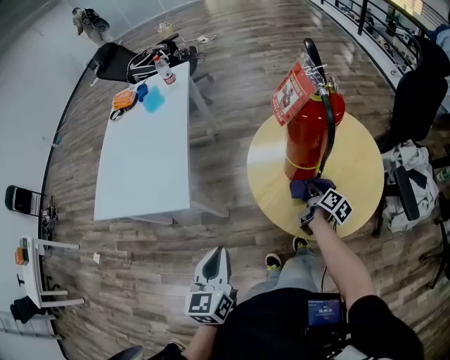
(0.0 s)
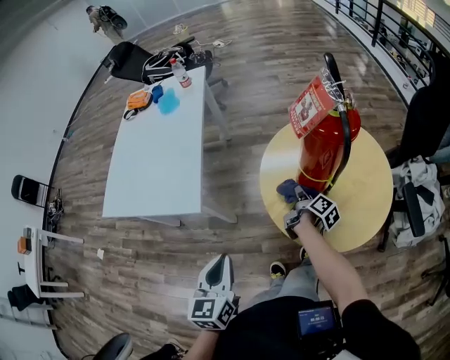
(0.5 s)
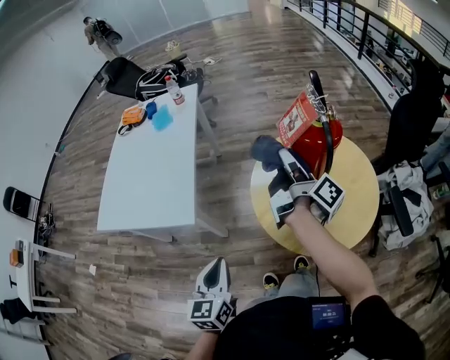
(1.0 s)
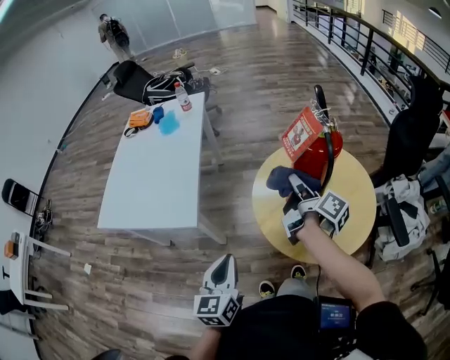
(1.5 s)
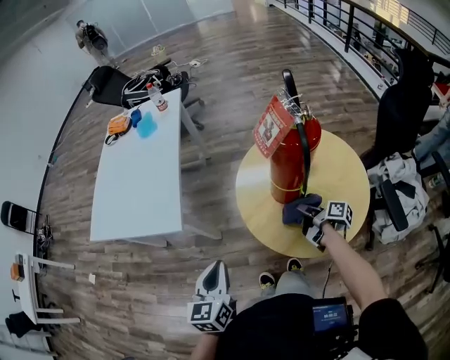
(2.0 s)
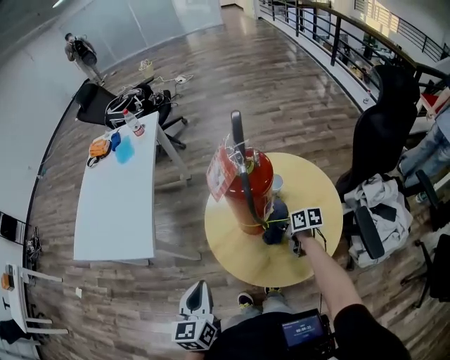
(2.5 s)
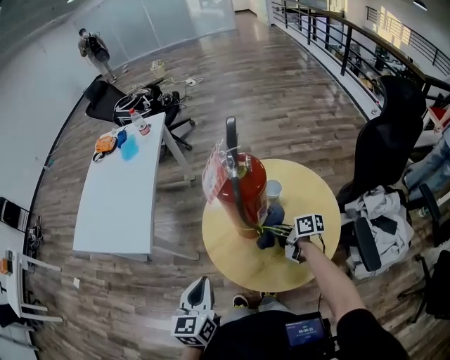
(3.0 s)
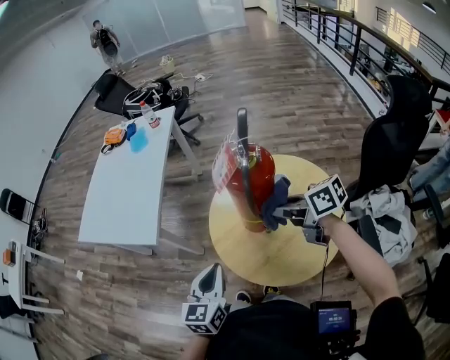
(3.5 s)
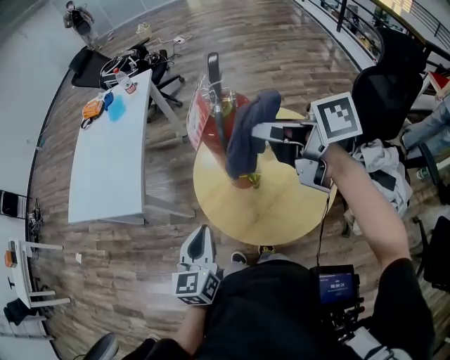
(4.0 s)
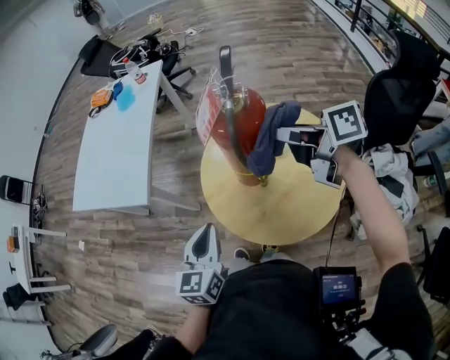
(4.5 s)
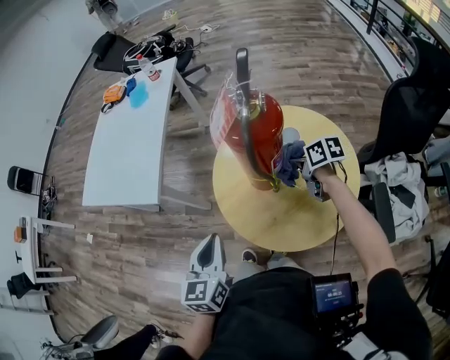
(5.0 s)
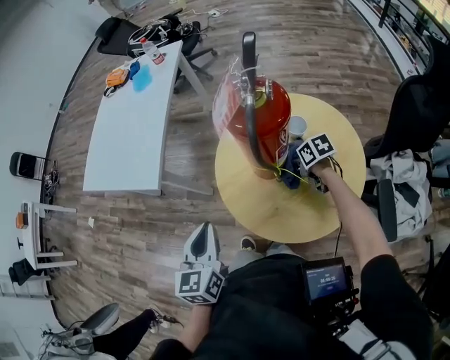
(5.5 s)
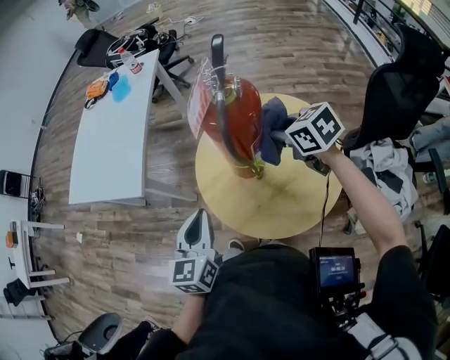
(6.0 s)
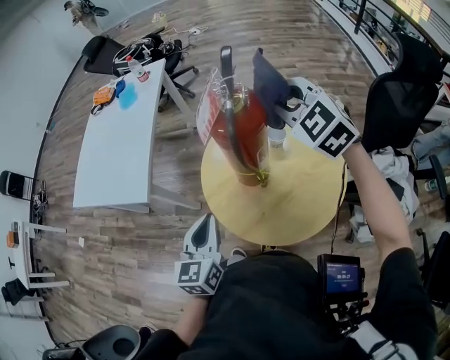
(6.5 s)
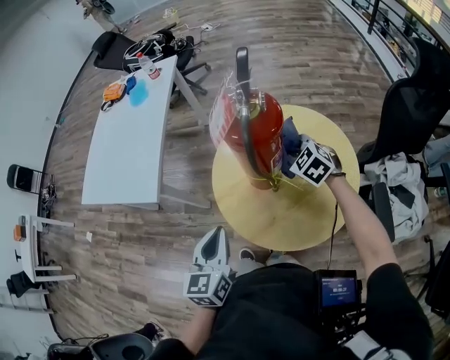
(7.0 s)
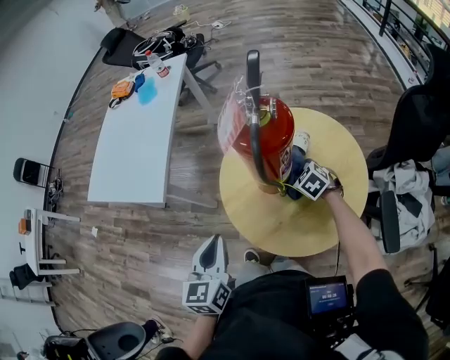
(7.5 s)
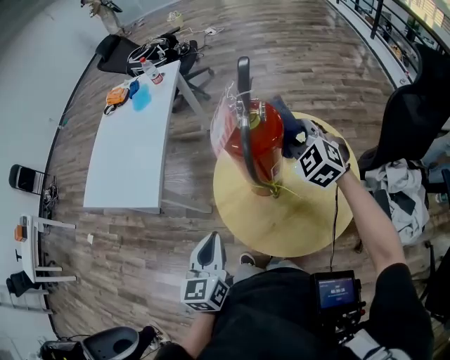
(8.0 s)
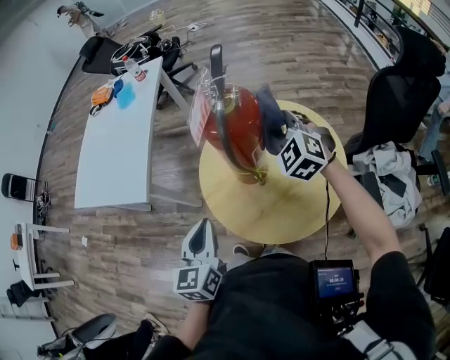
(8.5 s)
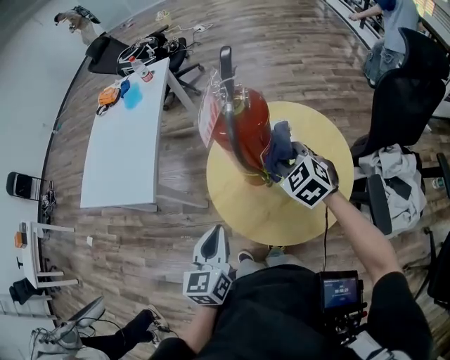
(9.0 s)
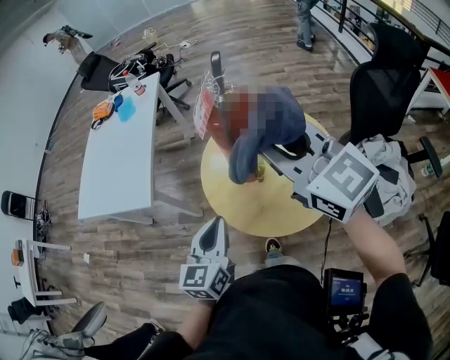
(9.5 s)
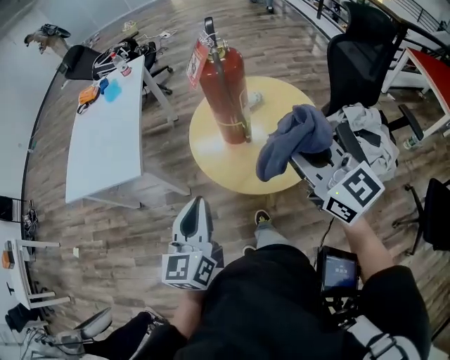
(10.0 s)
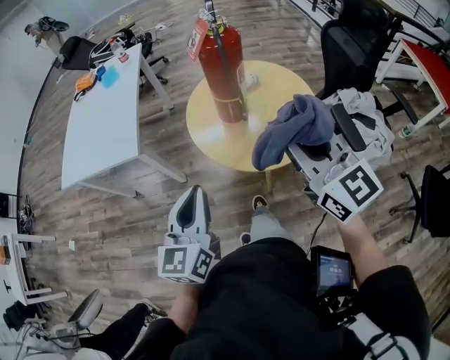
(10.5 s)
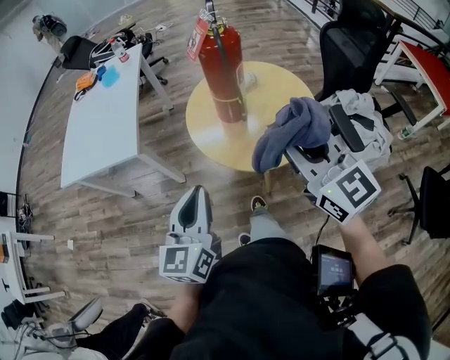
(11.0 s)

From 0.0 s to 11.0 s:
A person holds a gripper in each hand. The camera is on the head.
From 0.0 s to 2.0 s: The right gripper reaches roughly 30 cm upward, then returns, and changes its angle by roughly 30 degrees.
From 2.0 s to 3.5 s: The right gripper goes about 20 cm upward, and turns by about 60 degrees; the left gripper shifts some 15 cm to the right.
From 3.5 s to 5.5 s: The right gripper travels downward by roughly 25 cm, and tips its fingers downward by about 30 degrees.
From 5.5 s to 7.5 s: The right gripper moves about 35 cm upward and comes back, and twists some 40 degrees counterclockwise, seen from behind.
From 7.5 s to 9.0 s: The right gripper travels upward by about 20 cm, and changes its angle by approximately 20 degrees.
From 9.0 s to 11.0 s: The right gripper is displaced backward and upward by approximately 35 cm, and tilts its fingers approximately 40 degrees upward. The left gripper shifts some 20 cm backward, upward and to the left.

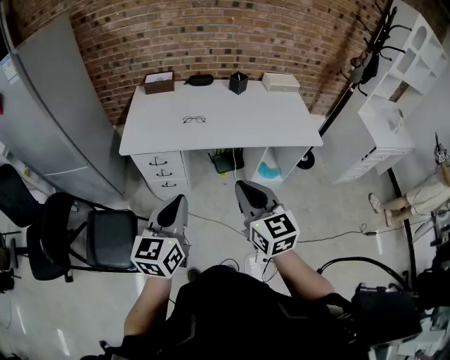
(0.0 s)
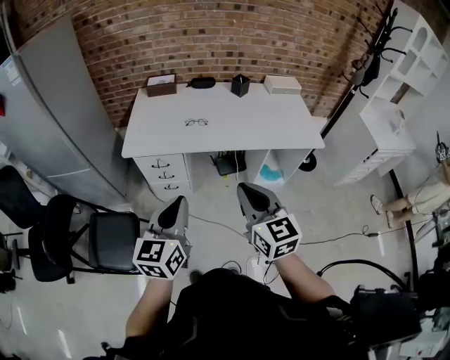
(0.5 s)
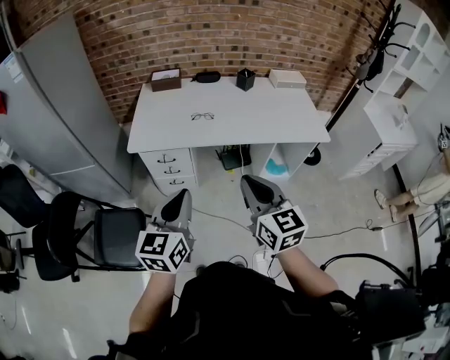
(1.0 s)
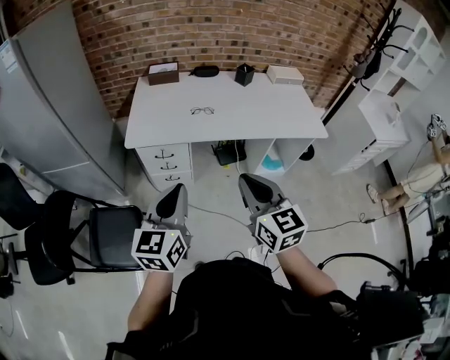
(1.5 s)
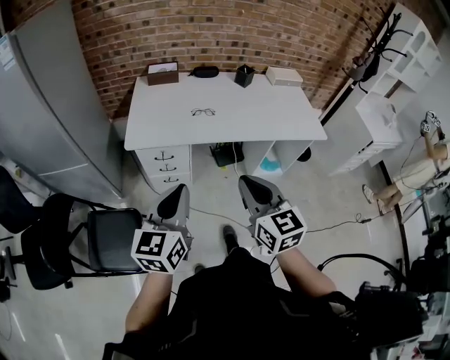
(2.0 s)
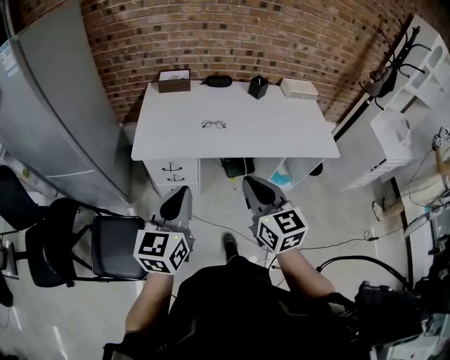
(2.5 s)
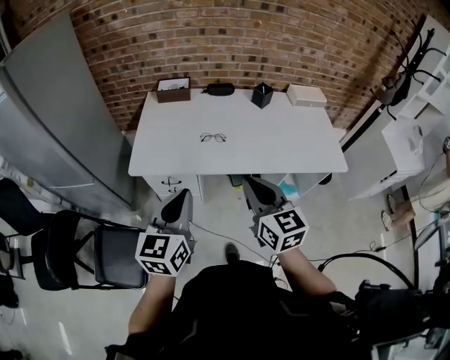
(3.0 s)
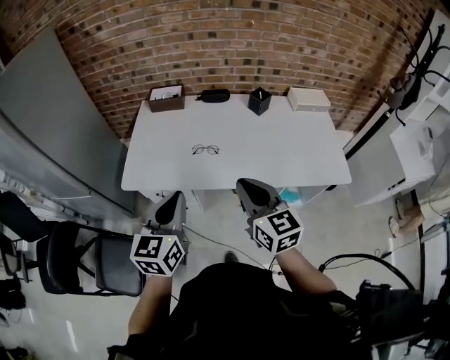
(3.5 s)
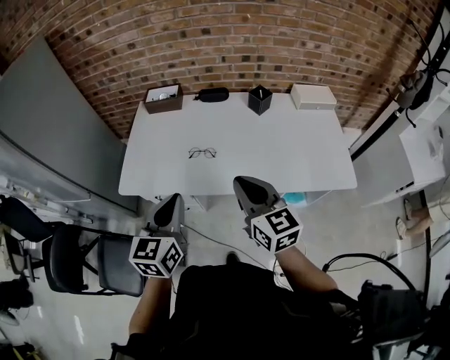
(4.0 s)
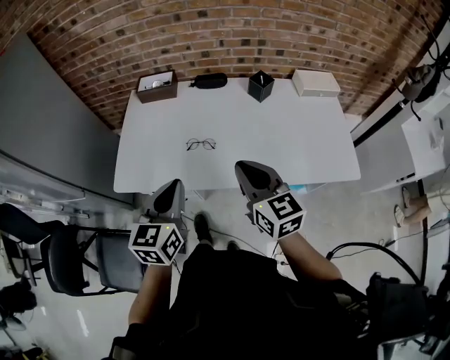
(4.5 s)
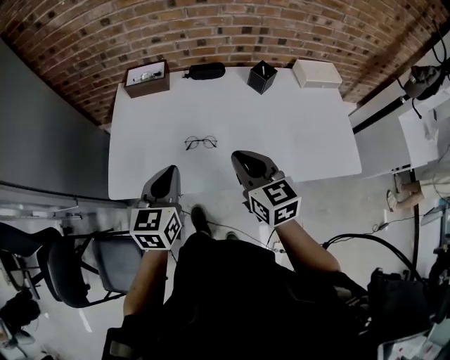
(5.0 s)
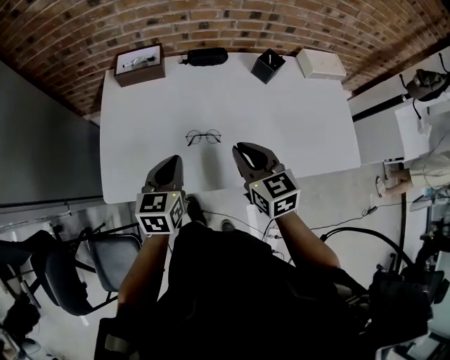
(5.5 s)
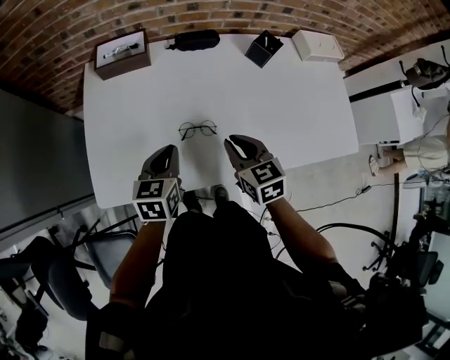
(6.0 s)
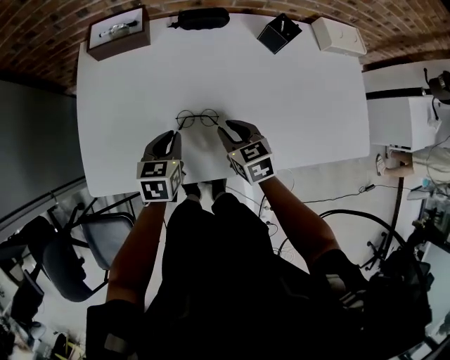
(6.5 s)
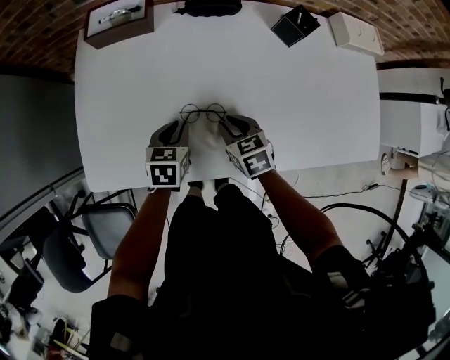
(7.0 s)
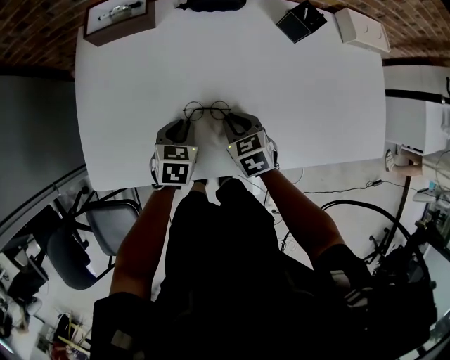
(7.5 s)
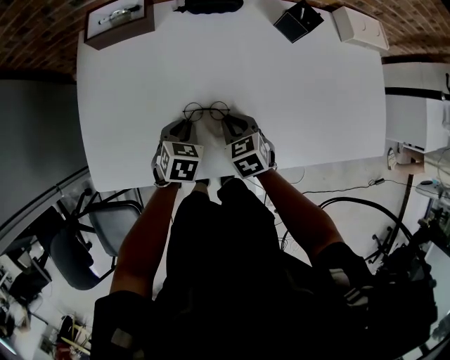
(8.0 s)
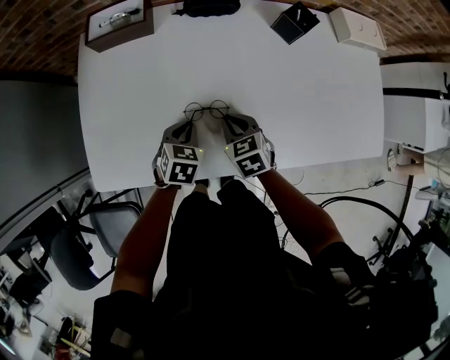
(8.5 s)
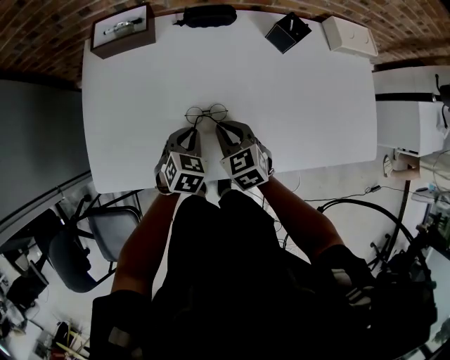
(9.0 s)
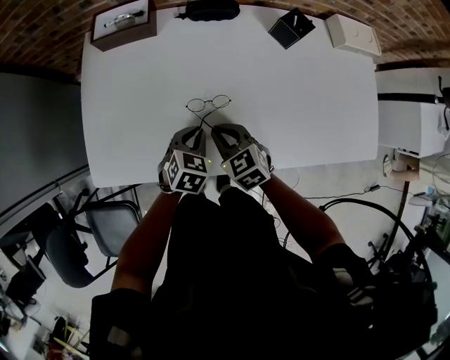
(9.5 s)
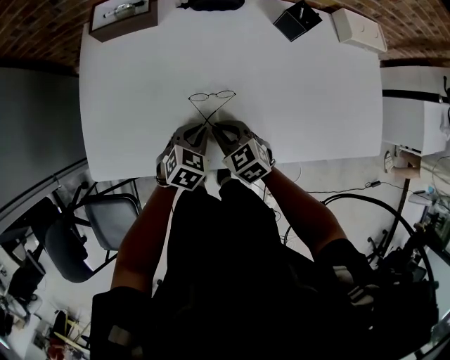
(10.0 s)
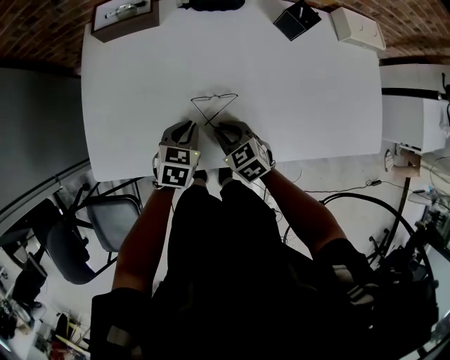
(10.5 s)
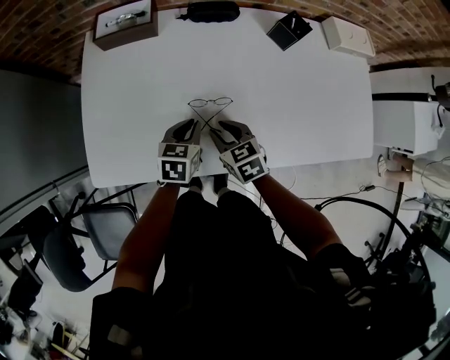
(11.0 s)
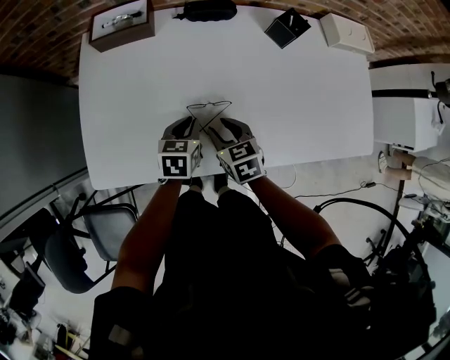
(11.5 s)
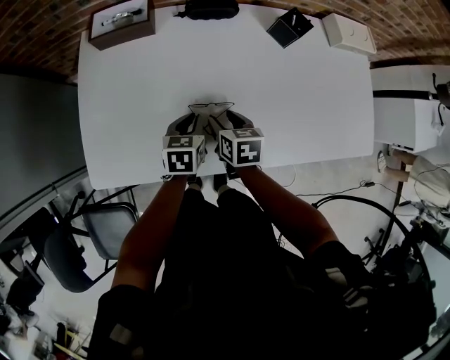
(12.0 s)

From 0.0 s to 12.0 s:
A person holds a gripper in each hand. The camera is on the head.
From 0.0 s to 2.0 s: Both grippers travel together to the left, about 10 cm.
From 2.0 s to 4.0 s: The grippers both shift forward and to the right by roughly 30 cm.
From 4.0 s to 6.0 s: Both grippers travel together forward and downward, about 30 cm. The left gripper changes its angle by about 20 degrees, while the right gripper swivels some 30 degrees.
From 6.0 s to 8.0 s: The grippers both shift downward by about 15 cm. The left gripper swivels about 30 degrees.
From 8.0 s to 10.0 s: The right gripper shifts by roughly 5 cm. Meanwhile the left gripper moves approximately 5 cm.
From 10.0 s to 12.0 s: The left gripper heads forward, covering approximately 5 cm, and changes its angle by about 30 degrees, while the right gripper moves approximately 5 cm, rolls clockwise, seen from behind, by about 40 degrees, and opens up.

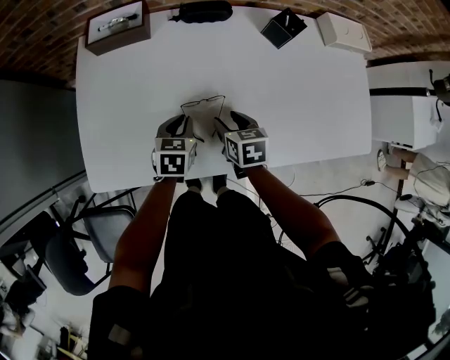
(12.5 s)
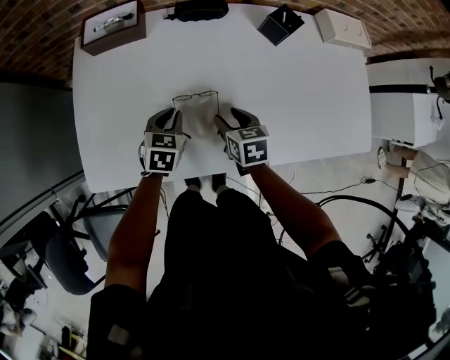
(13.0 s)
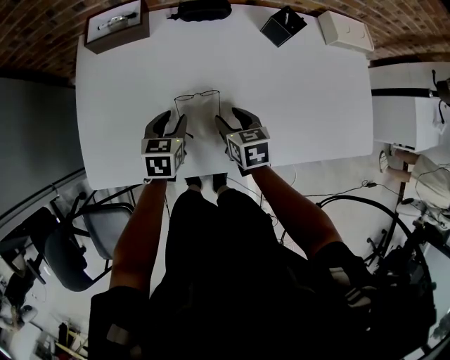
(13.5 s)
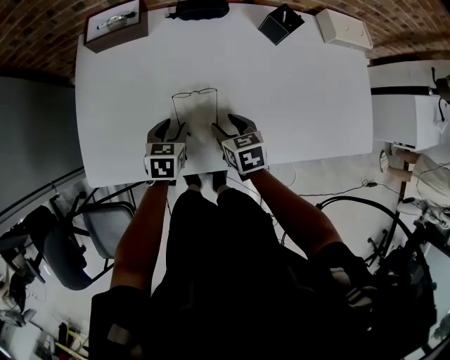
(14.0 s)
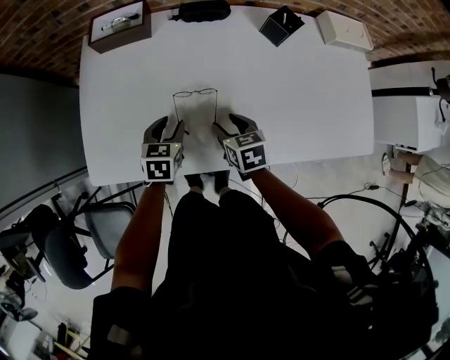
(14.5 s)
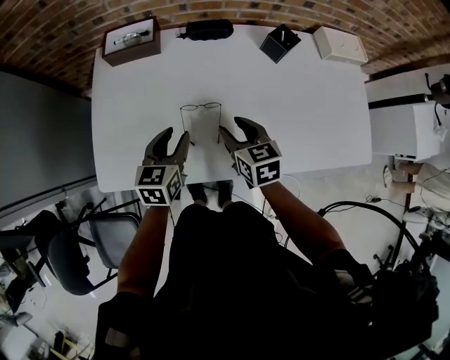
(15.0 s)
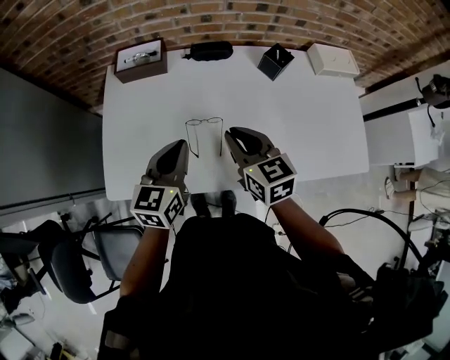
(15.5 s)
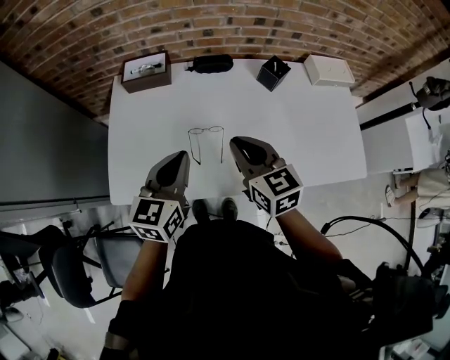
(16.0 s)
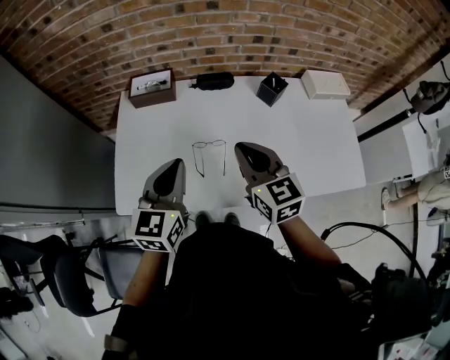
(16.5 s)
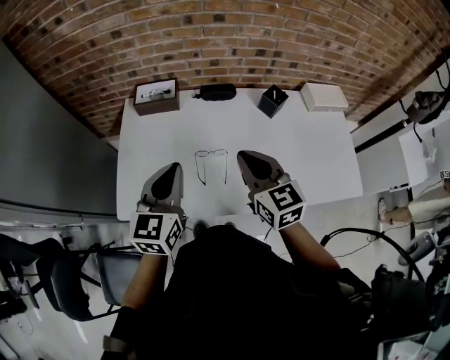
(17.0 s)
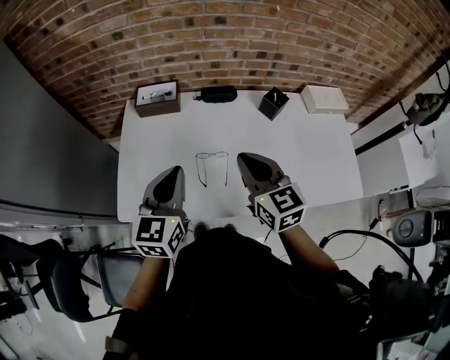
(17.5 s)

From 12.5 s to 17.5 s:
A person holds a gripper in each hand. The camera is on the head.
From 12.5 s to 15.0 s: The two grippers go about 10 cm upward. The left gripper opens.
From 15.0 s to 17.5 s: Both grippers travel together upward, some 20 cm. The right gripper changes its angle by about 20 degrees, and closes. Meanwhile the left gripper rotates some 20 degrees, and closes up.
